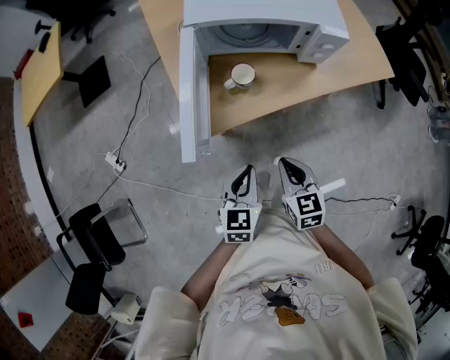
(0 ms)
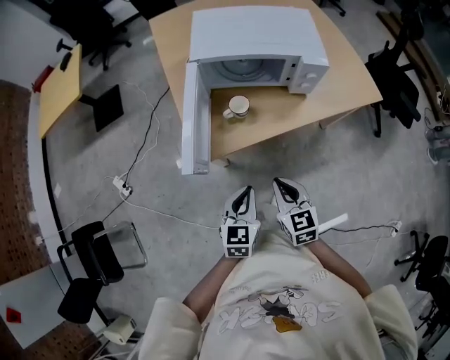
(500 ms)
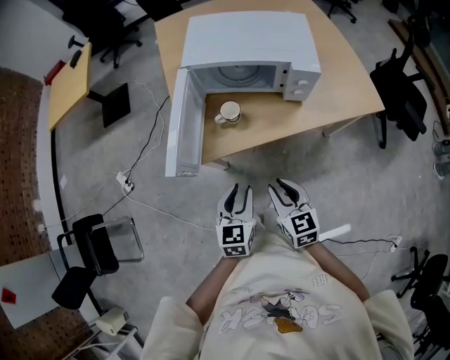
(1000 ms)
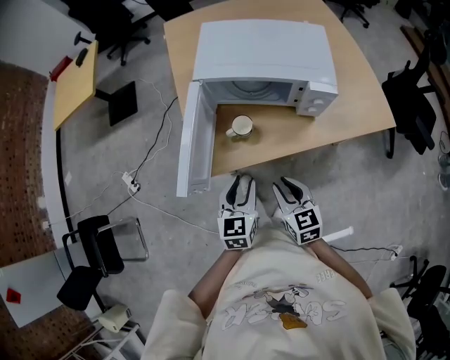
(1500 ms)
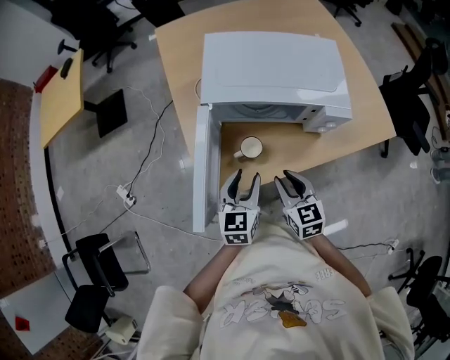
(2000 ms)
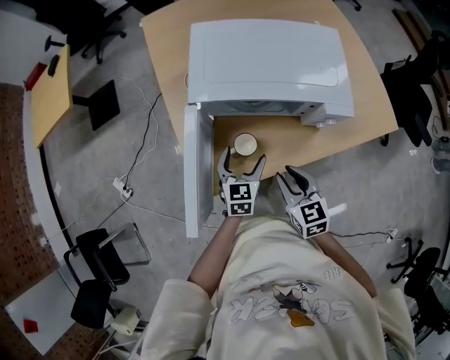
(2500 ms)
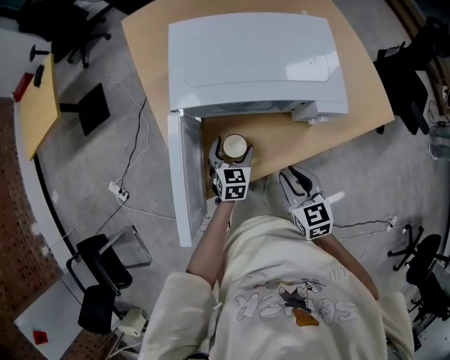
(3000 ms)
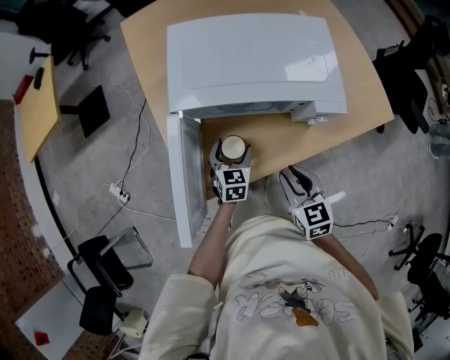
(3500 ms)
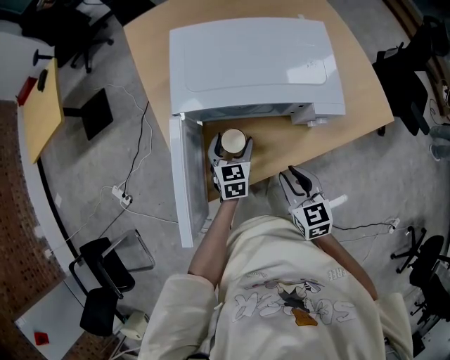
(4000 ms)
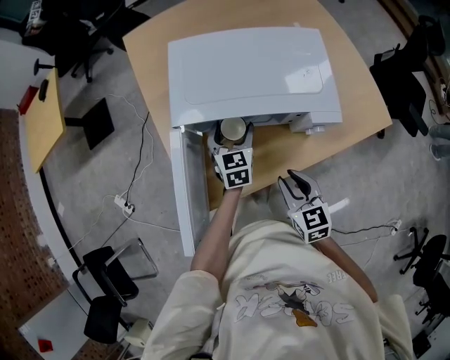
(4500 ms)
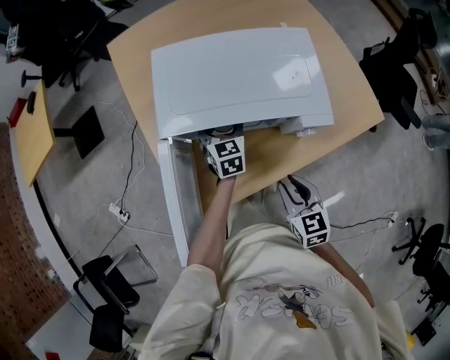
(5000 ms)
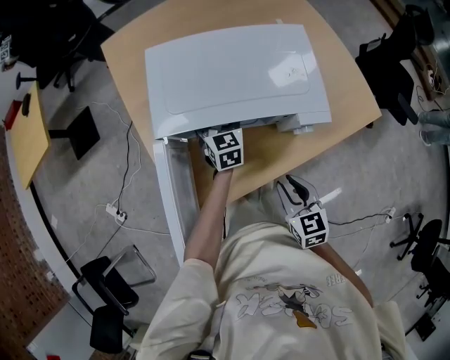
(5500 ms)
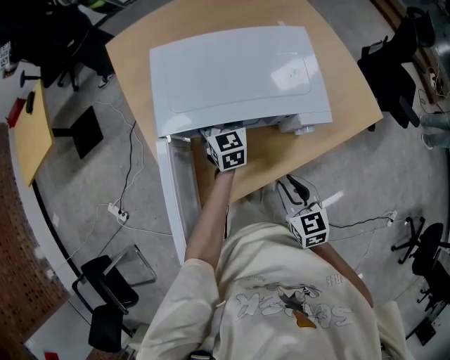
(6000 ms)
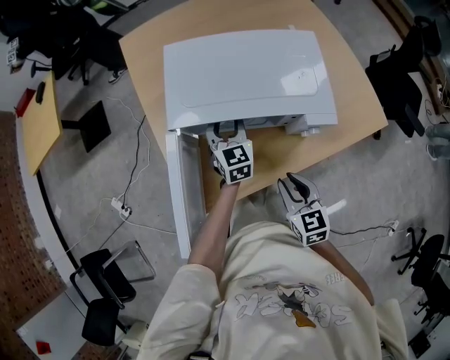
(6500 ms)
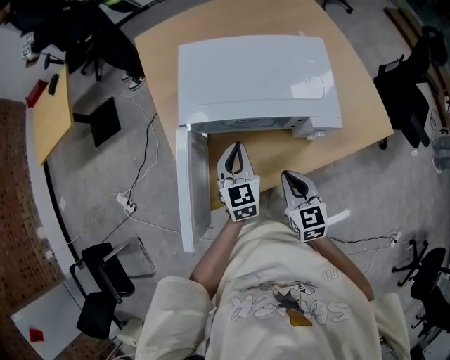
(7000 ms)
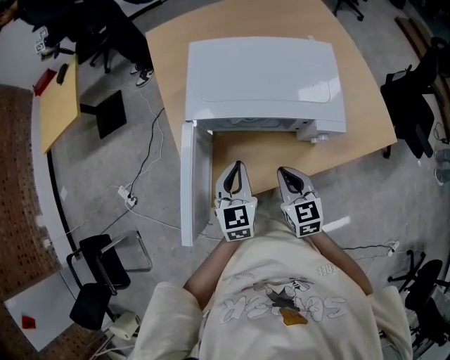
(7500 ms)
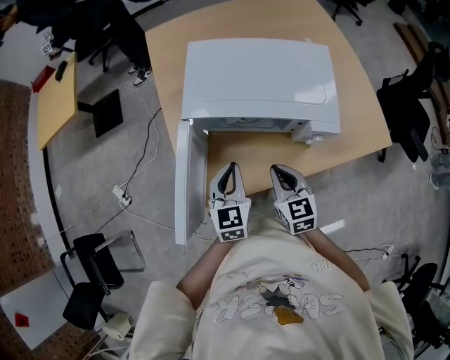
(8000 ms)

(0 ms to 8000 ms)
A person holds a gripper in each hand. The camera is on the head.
0 ms - 2000 ms: The two grippers go about 15 cm forward. The right gripper opens its fingers, while the left gripper opens up.
2000 ms - 4000 ms: The left gripper shifts roughly 15 cm forward and downward, and opens. The right gripper heads to the right, covering roughly 5 cm.
4000 ms - 6000 ms: The left gripper travels forward and upward by roughly 15 cm.
6000 ms - 8000 ms: The right gripper ends up roughly 5 cm from where it was, and closes, while the left gripper goes some 20 cm backward, and closes up.

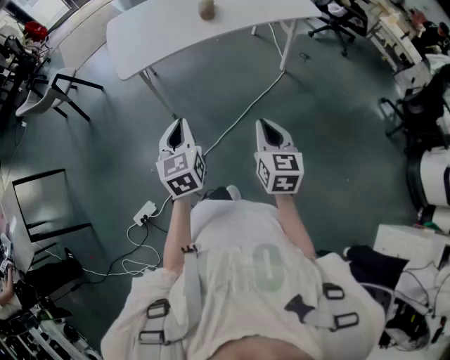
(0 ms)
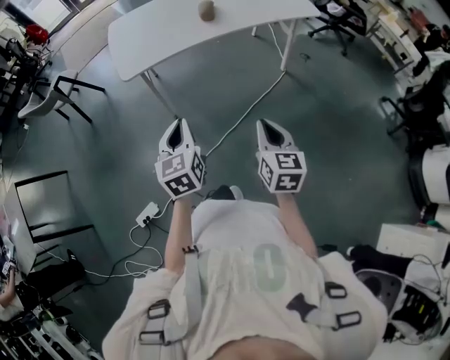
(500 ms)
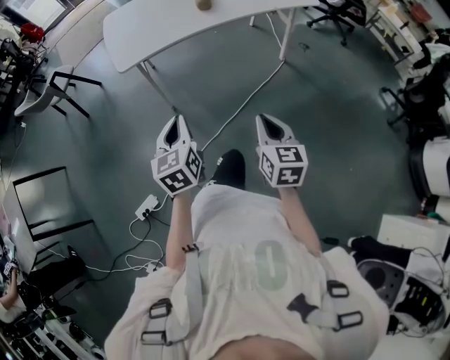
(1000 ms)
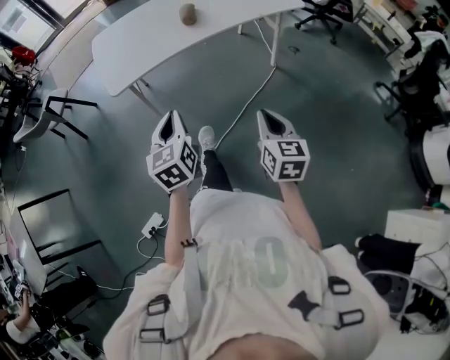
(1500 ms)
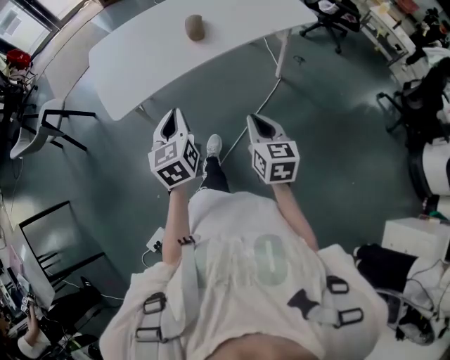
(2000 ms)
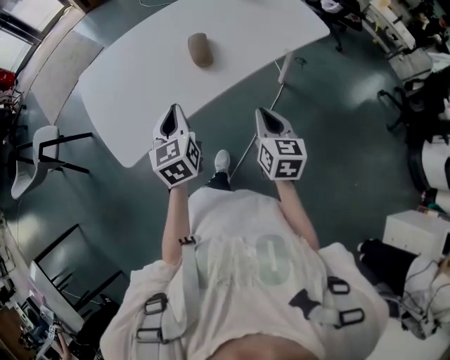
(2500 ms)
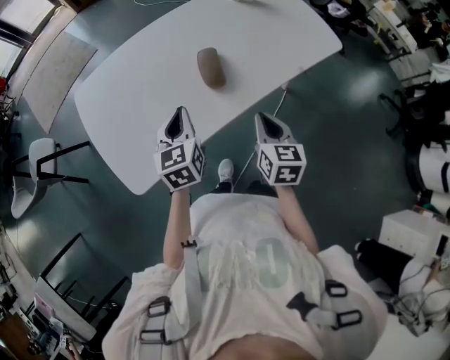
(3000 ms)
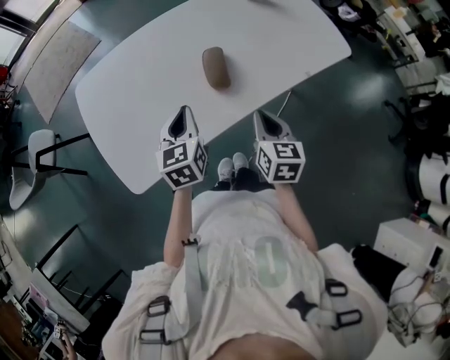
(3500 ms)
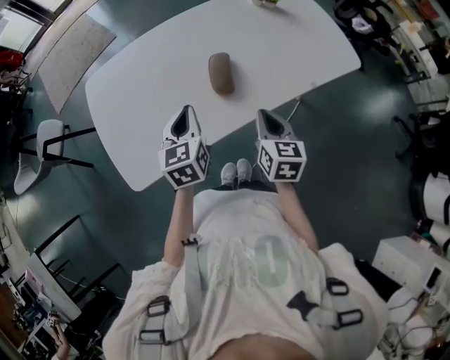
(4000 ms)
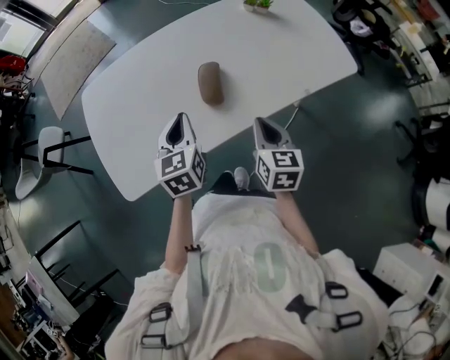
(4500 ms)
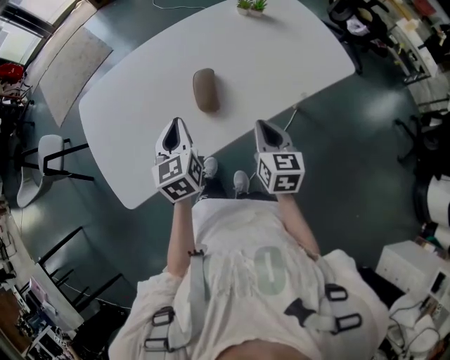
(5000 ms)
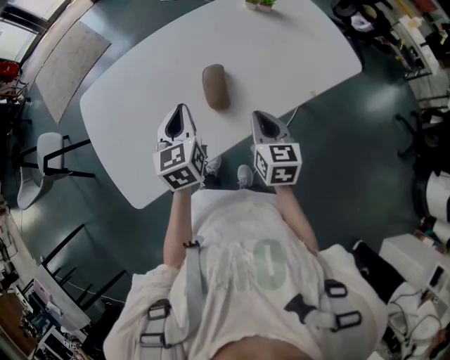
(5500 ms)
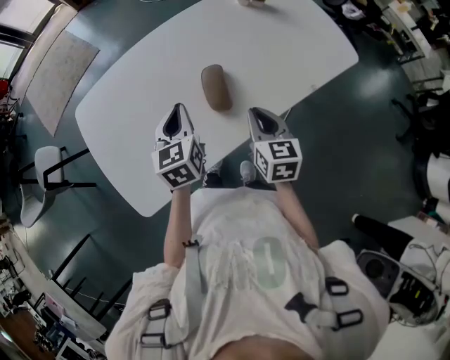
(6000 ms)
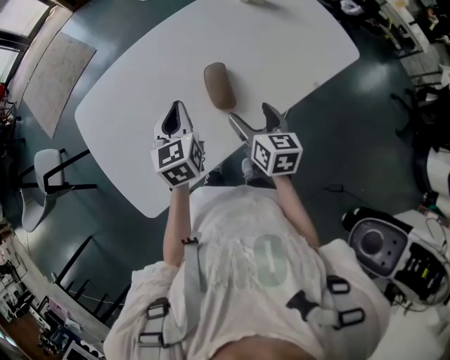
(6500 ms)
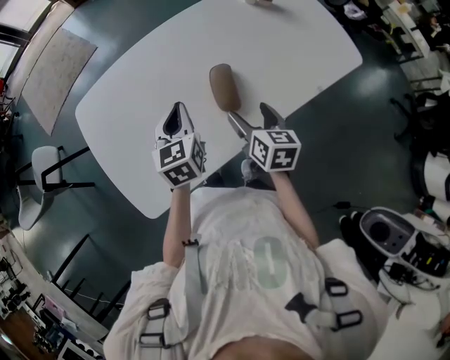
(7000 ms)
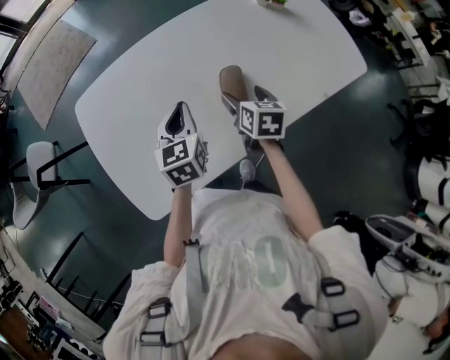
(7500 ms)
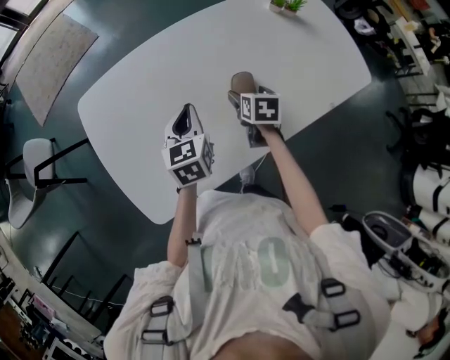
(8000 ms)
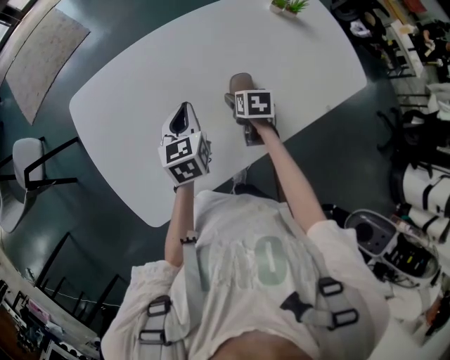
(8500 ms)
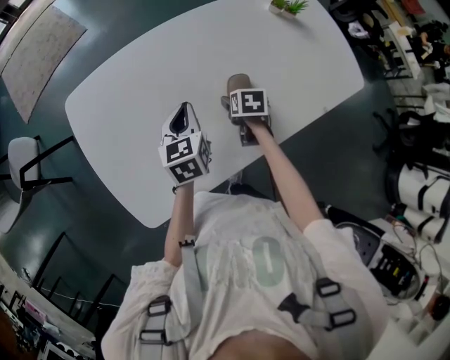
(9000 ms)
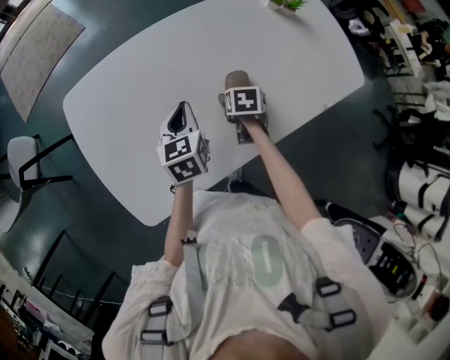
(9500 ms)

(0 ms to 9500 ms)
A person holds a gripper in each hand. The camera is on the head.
0 ms - 2000 ms: The grippers both shift forward by some 20 cm.
2000 ms - 4000 ms: The two grippers go about 35 cm forward.
4000 ms - 5500 ms: Both grippers move forward, roughly 5 cm.
5500 ms - 7500 ms: The left gripper shifts roughly 10 cm to the left and forward, while the right gripper travels forward, to the left and downward by roughly 15 cm, and opens up.
7500 ms - 9500 ms: The left gripper changes place by approximately 5 cm. Meanwhile the right gripper moves downward, approximately 10 cm, and rotates some 30 degrees.

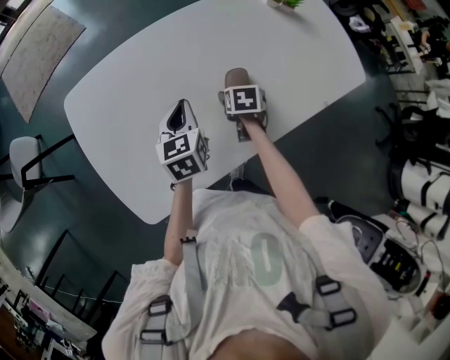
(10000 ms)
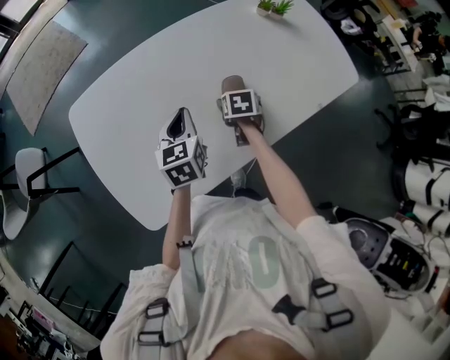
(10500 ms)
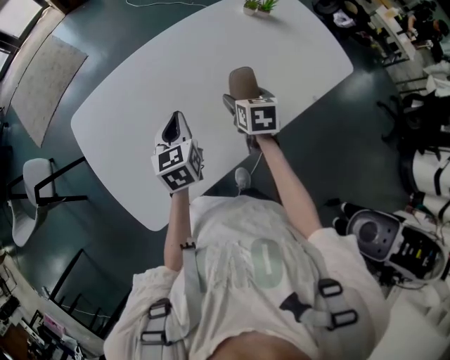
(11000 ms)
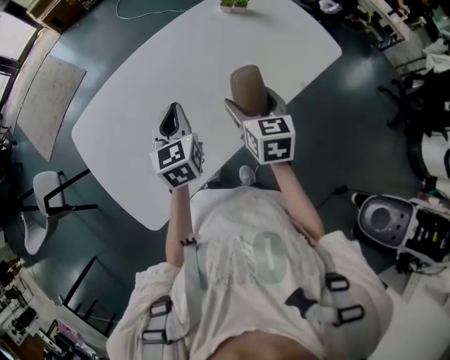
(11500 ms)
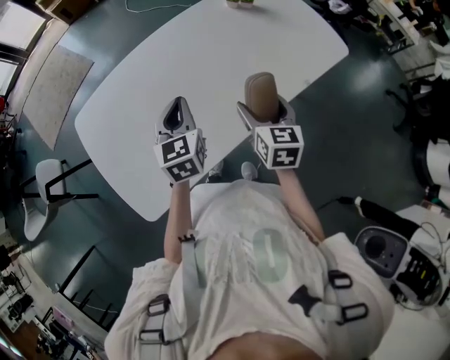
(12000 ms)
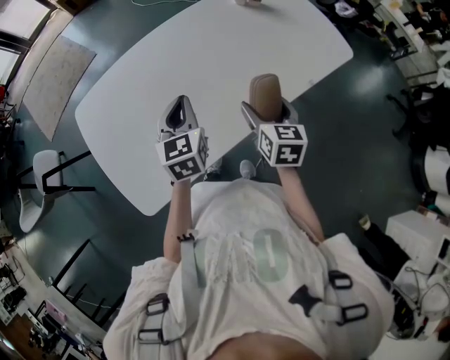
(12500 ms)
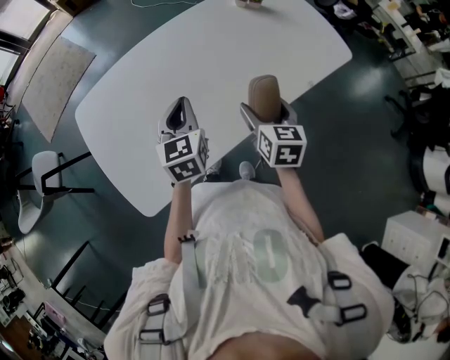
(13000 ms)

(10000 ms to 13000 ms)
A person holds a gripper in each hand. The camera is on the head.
10000 ms - 11500 ms: The right gripper moves upward, backward and to the right, some 25 cm, and points its fingers approximately 30 degrees further upward; the left gripper travels upward and to the right by roughly 10 cm.
11500 ms - 13000 ms: The right gripper moves about 5 cm.

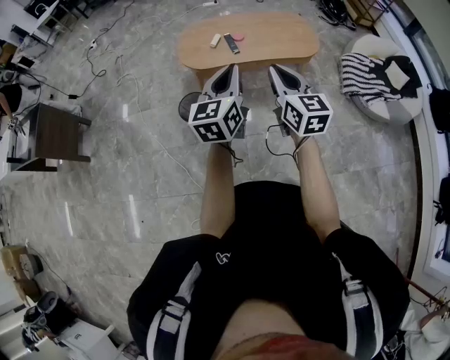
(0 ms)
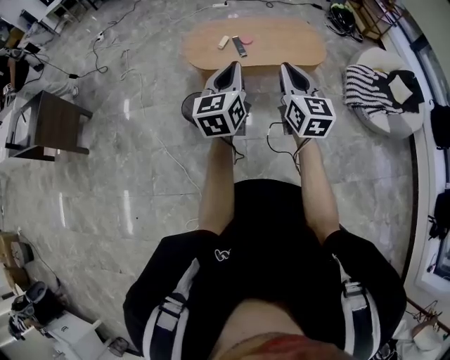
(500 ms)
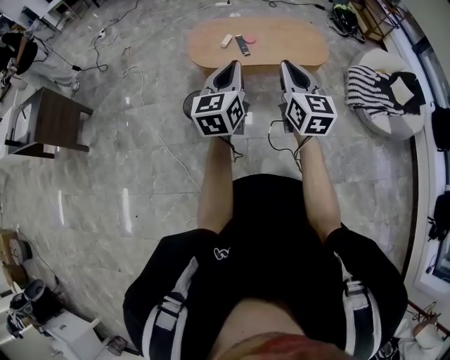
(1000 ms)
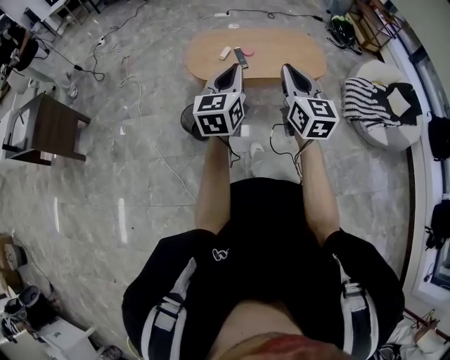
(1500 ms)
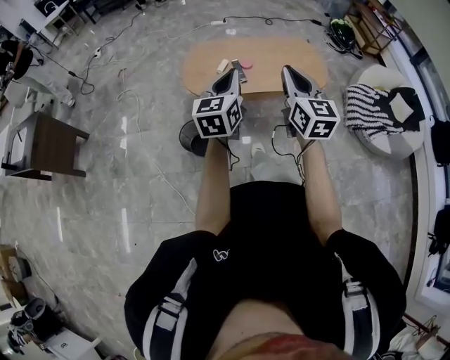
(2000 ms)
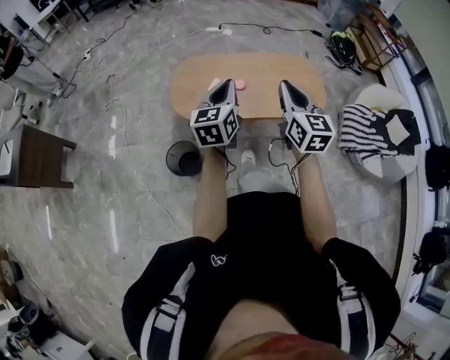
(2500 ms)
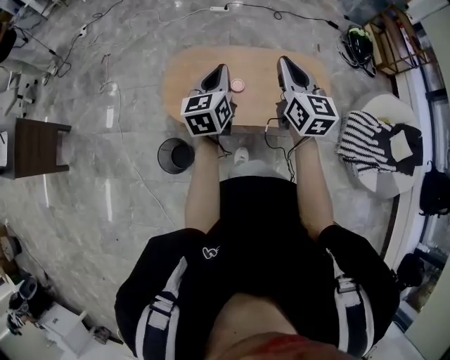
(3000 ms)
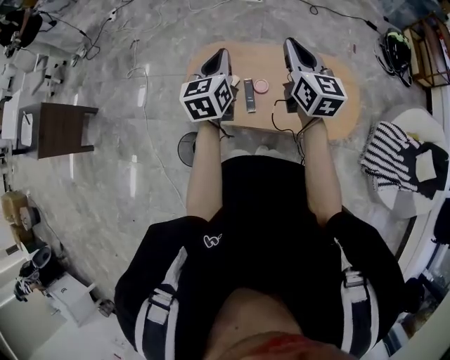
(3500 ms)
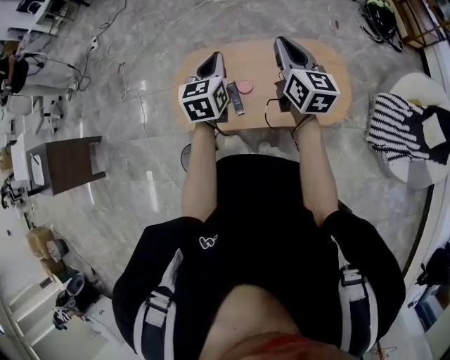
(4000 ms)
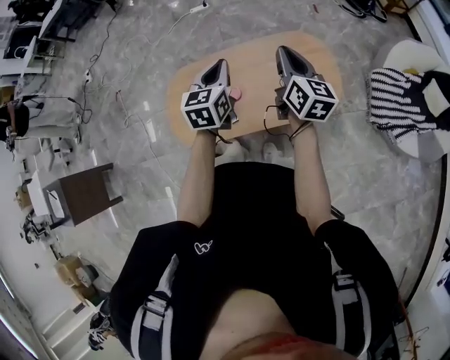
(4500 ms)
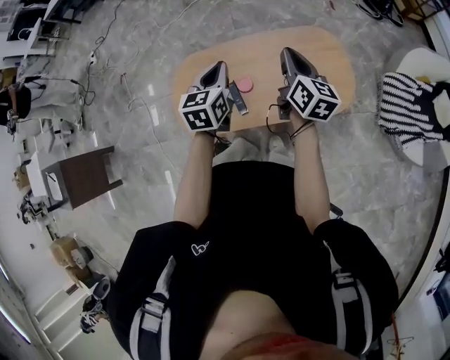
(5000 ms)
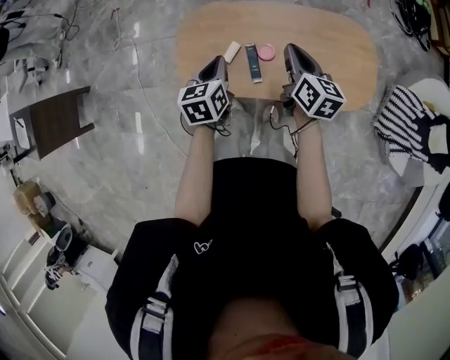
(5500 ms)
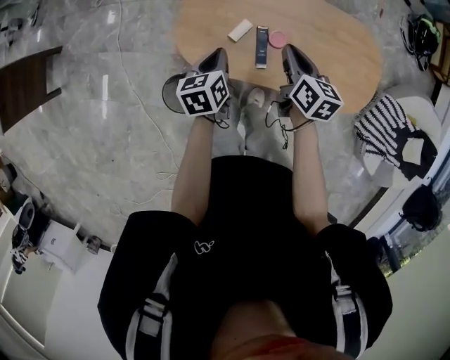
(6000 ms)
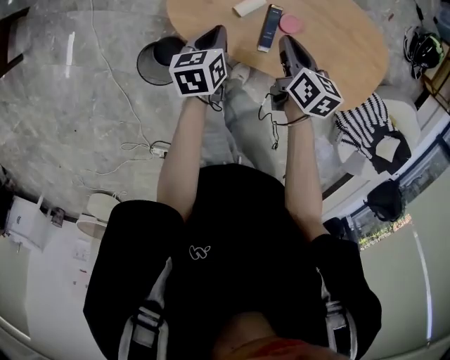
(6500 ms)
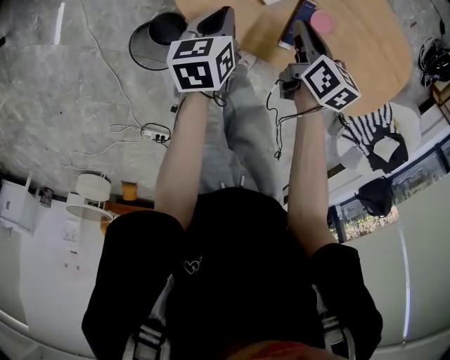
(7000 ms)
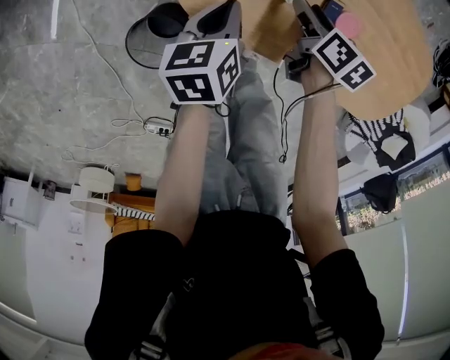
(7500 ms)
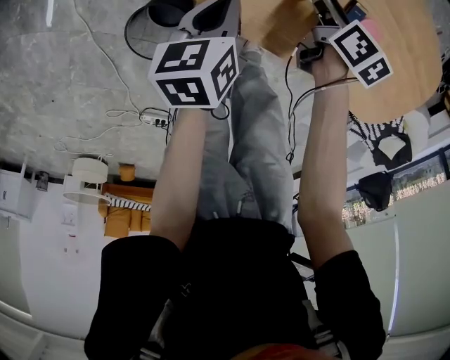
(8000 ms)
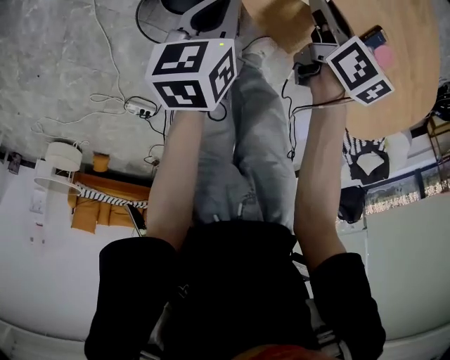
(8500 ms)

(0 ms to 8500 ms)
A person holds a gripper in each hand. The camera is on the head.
0 ms - 2000 ms: The two grippers go some 15 cm forward.
2000 ms - 4000 ms: The two grippers travel together, forward, about 50 cm.
4000 ms - 6500 ms: The grippers both shift downward by about 35 cm. The right gripper points its fingers approximately 40 degrees further downward, while the left gripper swivels some 50 degrees.
6500 ms - 8500 ms: Both grippers travel together downward and to the left, roughly 25 cm. The right gripper opens and closes again.
